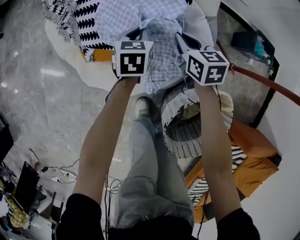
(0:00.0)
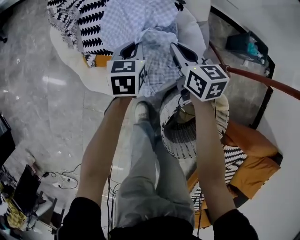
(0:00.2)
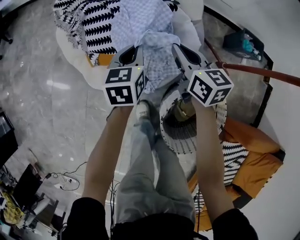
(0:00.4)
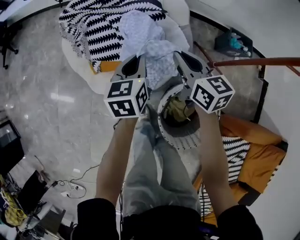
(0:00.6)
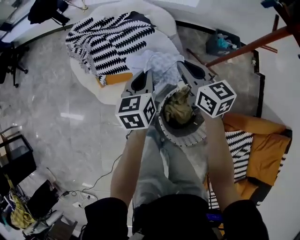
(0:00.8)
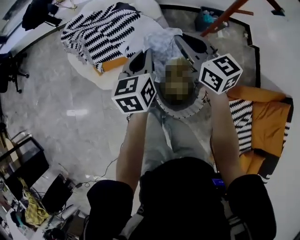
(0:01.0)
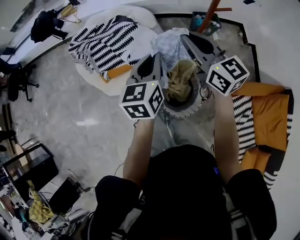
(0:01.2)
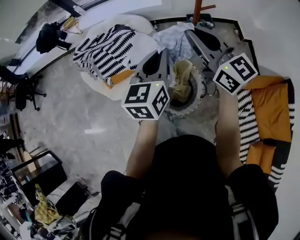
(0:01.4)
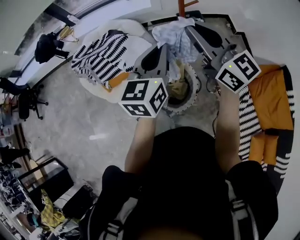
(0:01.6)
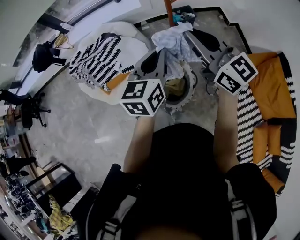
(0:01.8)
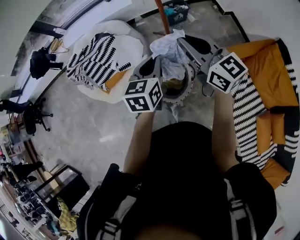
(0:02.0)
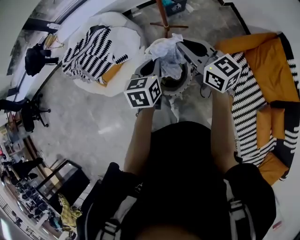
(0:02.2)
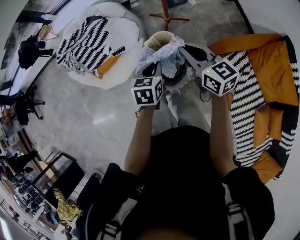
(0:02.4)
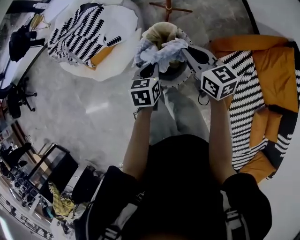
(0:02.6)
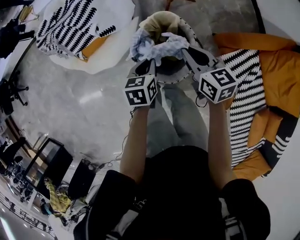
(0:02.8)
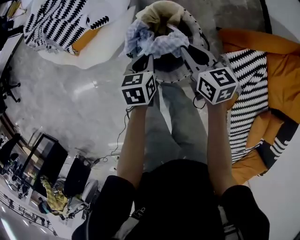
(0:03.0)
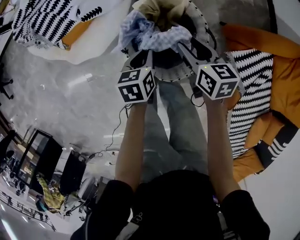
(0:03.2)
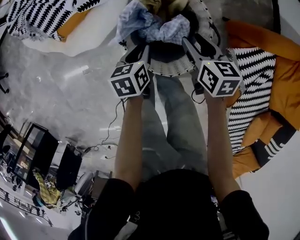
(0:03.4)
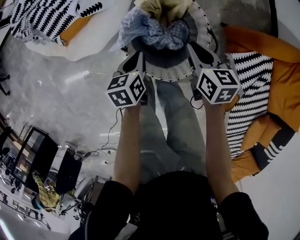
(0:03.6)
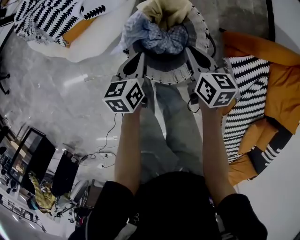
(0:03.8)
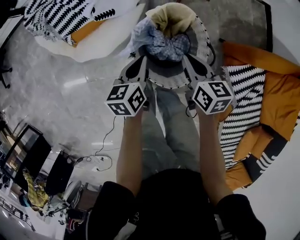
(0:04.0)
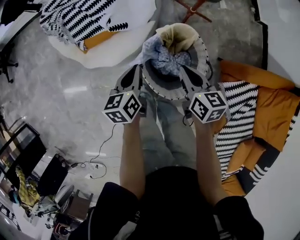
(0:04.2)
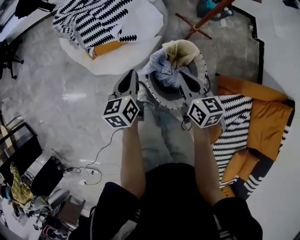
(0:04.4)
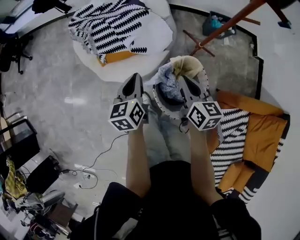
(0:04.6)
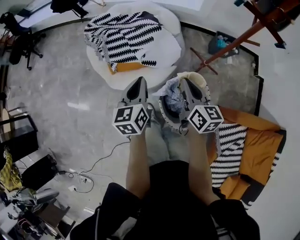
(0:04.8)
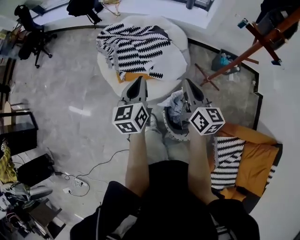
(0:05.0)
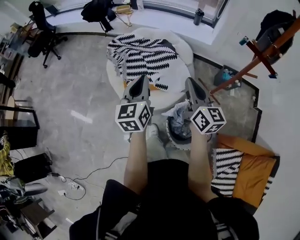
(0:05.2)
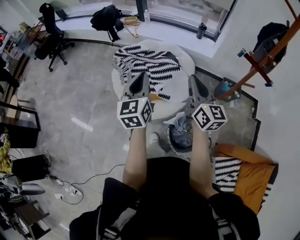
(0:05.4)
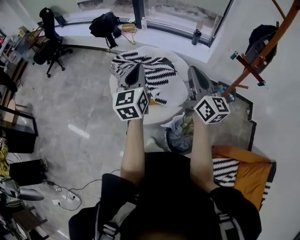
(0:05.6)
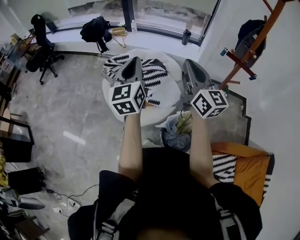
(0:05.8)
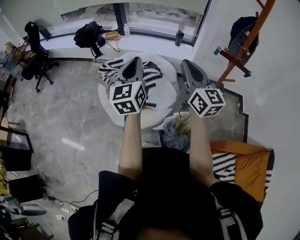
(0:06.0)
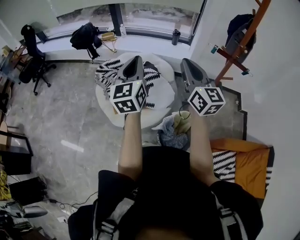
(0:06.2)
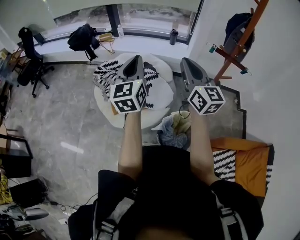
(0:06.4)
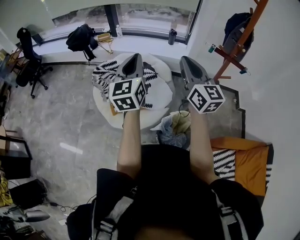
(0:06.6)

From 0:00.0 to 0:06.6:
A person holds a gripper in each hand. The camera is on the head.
From 0:00.0 to 0:01.6: The two grippers travel together, backward and to the right, roughly 50 cm. The grippers both shift upward by some 70 cm. The left gripper tilts its fingers some 40 degrees upward. The right gripper tips its fingers upward by roughly 50 degrees.
From 0:01.6 to 0:03.2: The grippers both shift downward by roughly 60 cm. The left gripper angles its fingers downward, by approximately 40 degrees, while the right gripper points its fingers approximately 50 degrees further downward, and opens.
From 0:03.2 to 0:05.0: Both grippers move upward, approximately 40 cm. The right gripper angles its fingers upward, by roughly 30 degrees, and closes up, while the left gripper tilts its fingers approximately 40 degrees upward.
From 0:05.0 to 0:06.6: The grippers both shift upward by about 25 cm. The right gripper swivels some 30 degrees, while the left gripper rotates roughly 20 degrees.

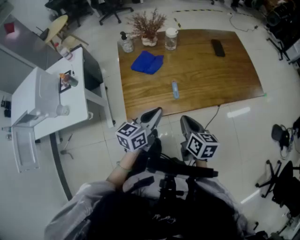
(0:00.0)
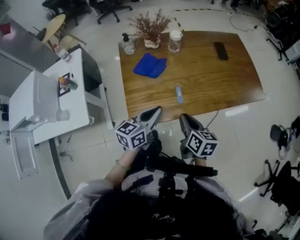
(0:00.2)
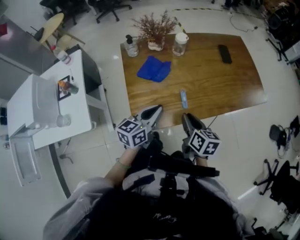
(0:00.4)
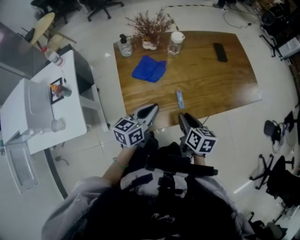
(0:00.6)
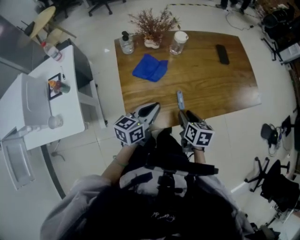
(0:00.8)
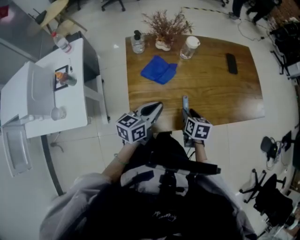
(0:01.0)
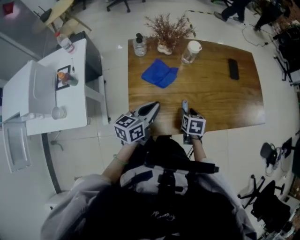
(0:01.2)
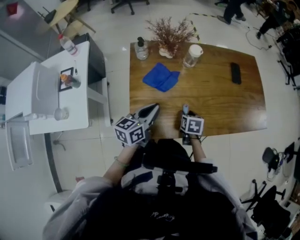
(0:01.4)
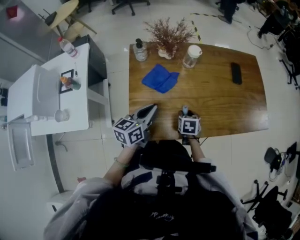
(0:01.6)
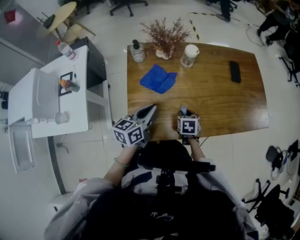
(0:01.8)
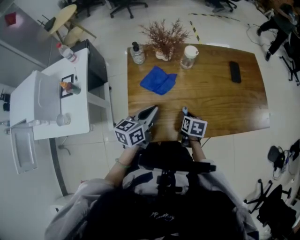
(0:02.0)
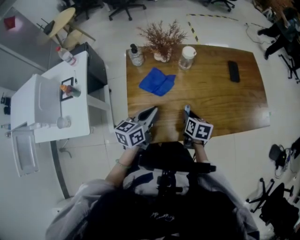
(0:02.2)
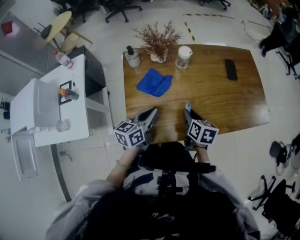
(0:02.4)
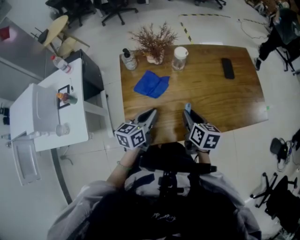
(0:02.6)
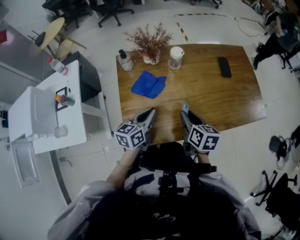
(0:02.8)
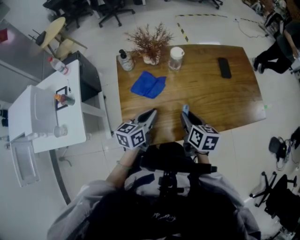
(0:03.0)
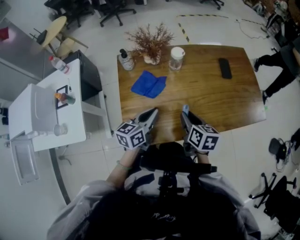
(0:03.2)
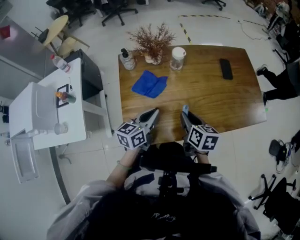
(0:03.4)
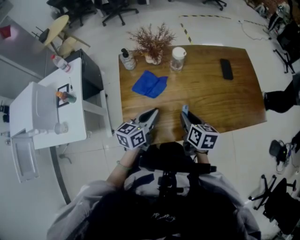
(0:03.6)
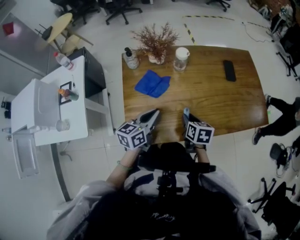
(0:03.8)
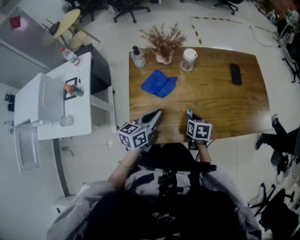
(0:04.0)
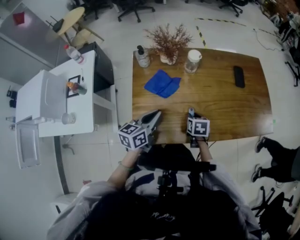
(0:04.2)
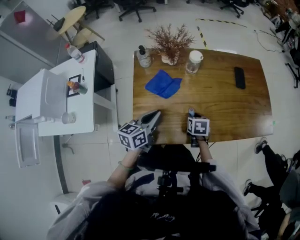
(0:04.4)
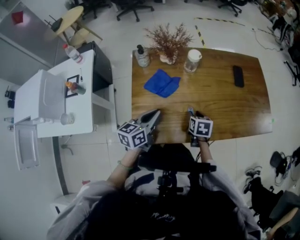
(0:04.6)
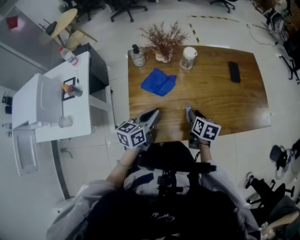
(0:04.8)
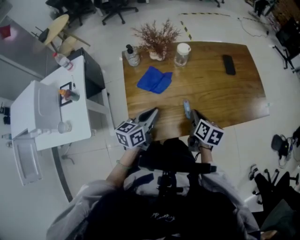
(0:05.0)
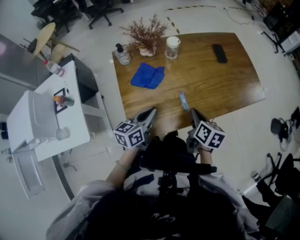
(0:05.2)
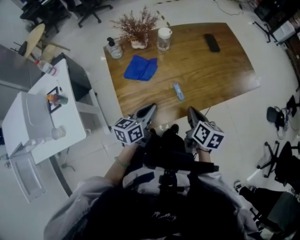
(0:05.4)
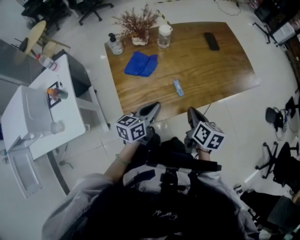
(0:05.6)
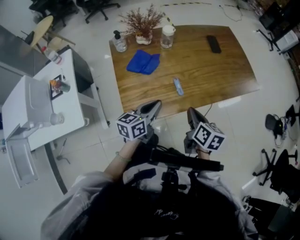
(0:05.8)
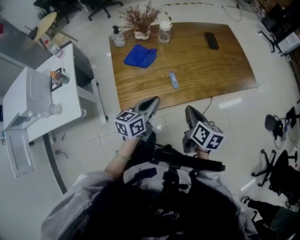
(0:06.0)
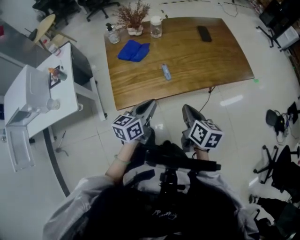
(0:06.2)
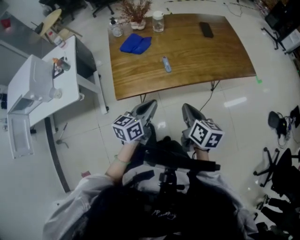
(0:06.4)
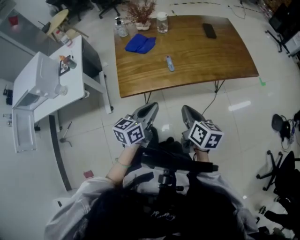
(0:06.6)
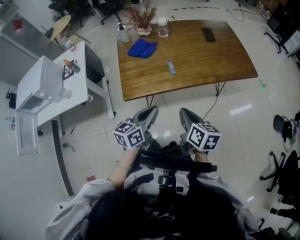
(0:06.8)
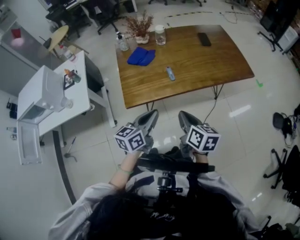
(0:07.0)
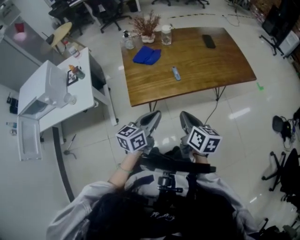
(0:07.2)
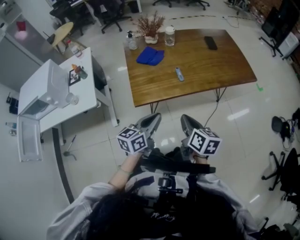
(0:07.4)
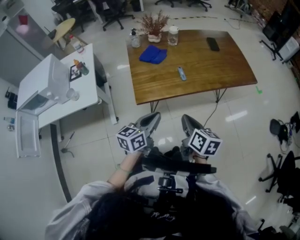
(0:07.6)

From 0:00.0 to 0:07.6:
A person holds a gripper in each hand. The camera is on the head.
From 0:00.0 to 0:01.6: The left gripper goes about 15 cm forward and to the left. The right gripper travels forward and downward by some 25 cm, tips its fingers downward by about 30 degrees, and opens its fingers.
From 0:01.6 to 0:03.0: The right gripper shifts roughly 15 cm upward, and rotates roughly 30 degrees.
From 0:03.0 to 0:04.6: The right gripper is displaced downward by some 10 cm, and changes its angle by roughly 20 degrees.
From 0:04.6 to 0:06.0: The left gripper heads backward and to the right, covering roughly 15 cm. Meanwhile the right gripper goes about 25 cm backward and upward, turns by some 30 degrees, and closes up.
From 0:06.0 to 0:07.6: The two grippers go roughly 15 cm backward.

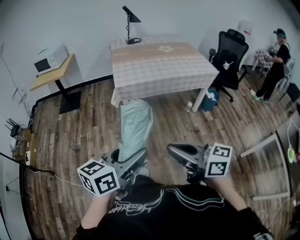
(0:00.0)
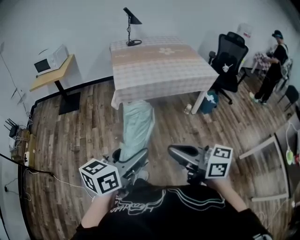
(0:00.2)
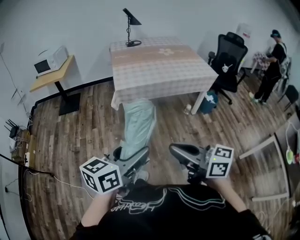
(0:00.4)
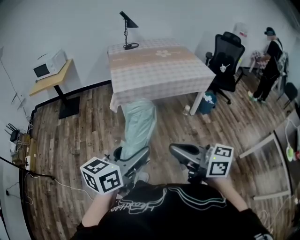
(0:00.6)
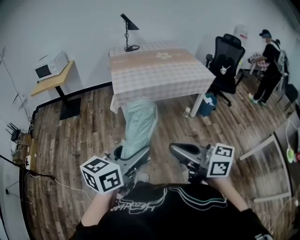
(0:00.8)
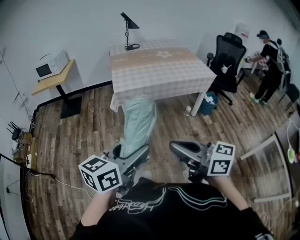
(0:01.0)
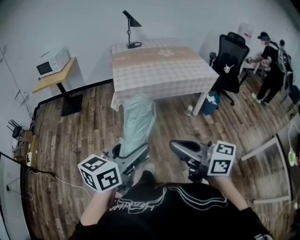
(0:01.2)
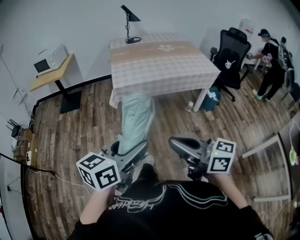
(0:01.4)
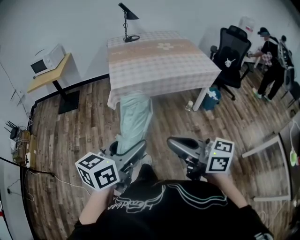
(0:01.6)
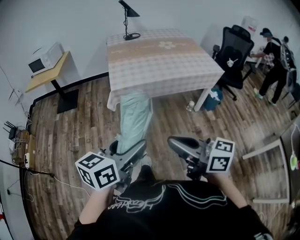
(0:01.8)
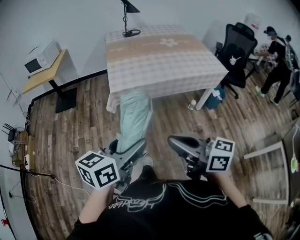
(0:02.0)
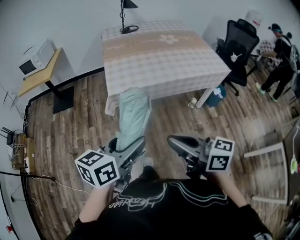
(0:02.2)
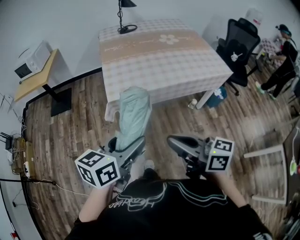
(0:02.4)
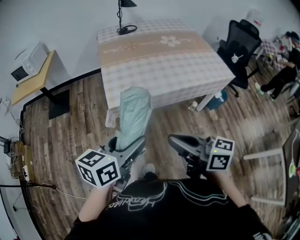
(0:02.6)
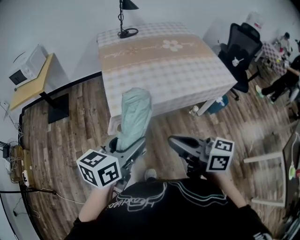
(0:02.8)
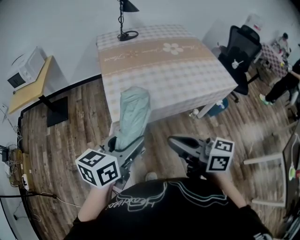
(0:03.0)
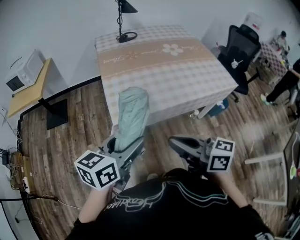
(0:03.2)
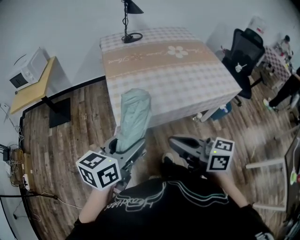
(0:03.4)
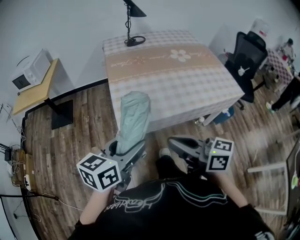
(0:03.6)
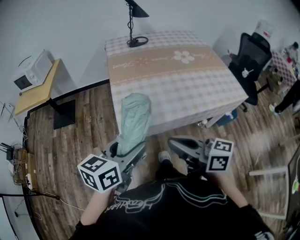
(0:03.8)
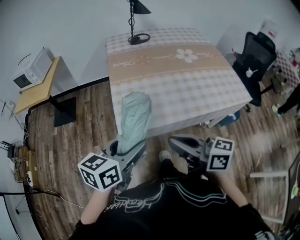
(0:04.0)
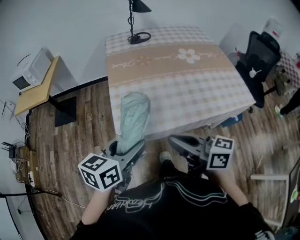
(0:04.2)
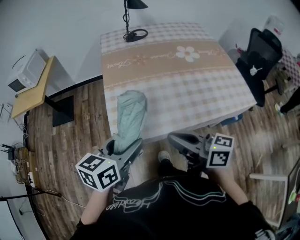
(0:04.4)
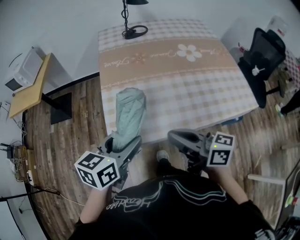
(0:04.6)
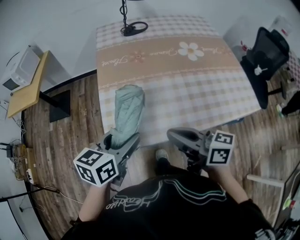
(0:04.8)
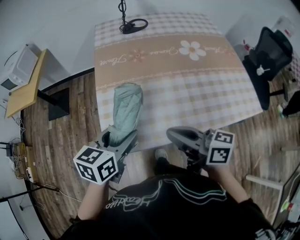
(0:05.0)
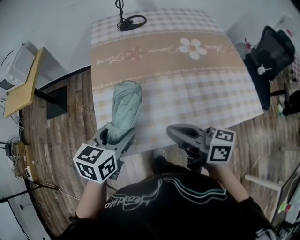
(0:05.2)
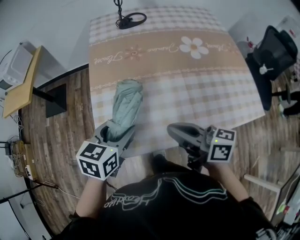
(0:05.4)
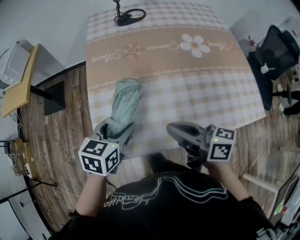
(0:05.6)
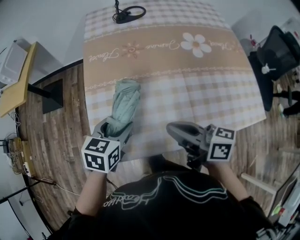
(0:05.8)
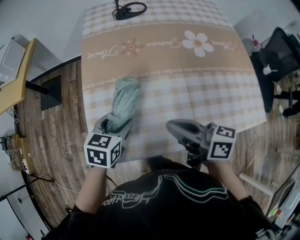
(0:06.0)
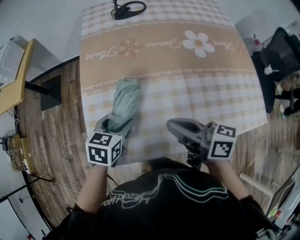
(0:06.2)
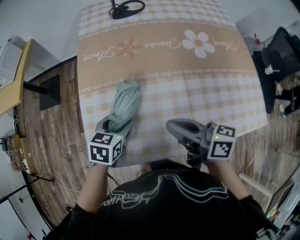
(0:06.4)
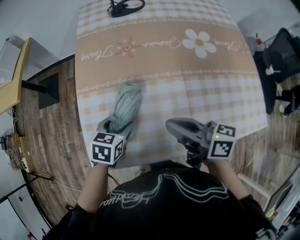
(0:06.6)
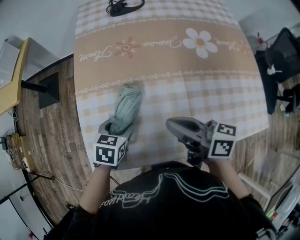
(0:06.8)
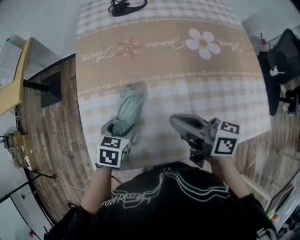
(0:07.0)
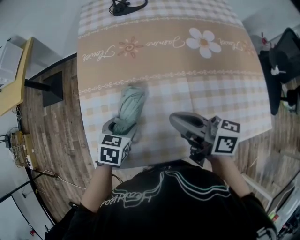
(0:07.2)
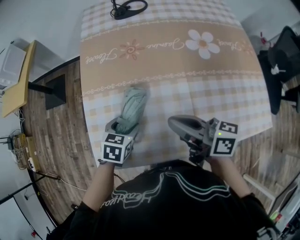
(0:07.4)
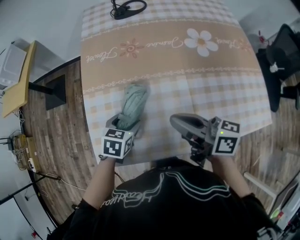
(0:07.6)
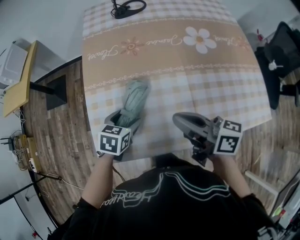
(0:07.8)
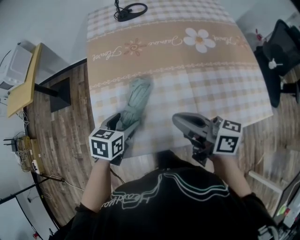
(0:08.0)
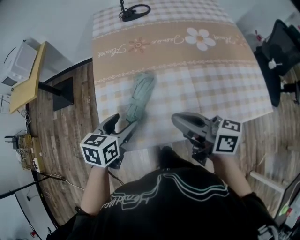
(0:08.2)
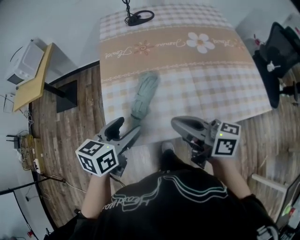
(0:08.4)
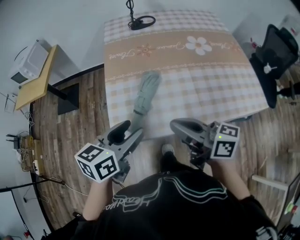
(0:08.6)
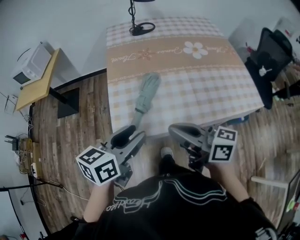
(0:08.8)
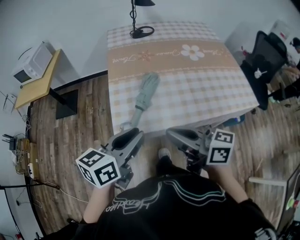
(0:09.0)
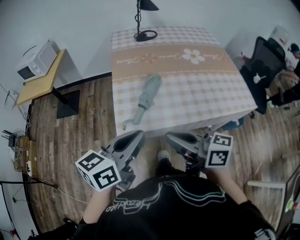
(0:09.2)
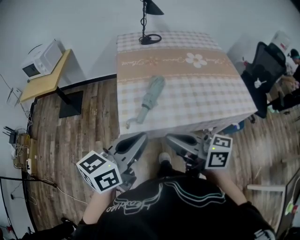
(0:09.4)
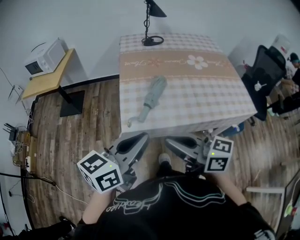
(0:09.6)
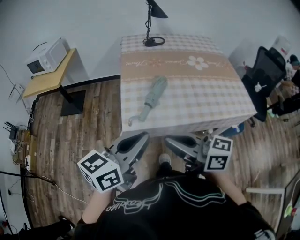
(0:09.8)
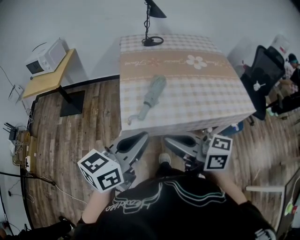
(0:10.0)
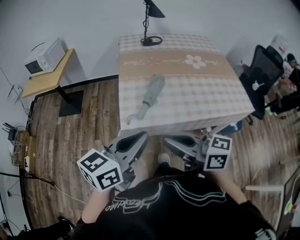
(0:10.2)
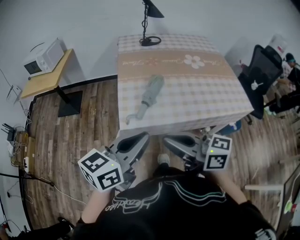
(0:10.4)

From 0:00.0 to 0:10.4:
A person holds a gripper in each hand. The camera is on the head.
From 0:00.0 to 0:01.4: The grippers make only small movements.
From 0:01.4 to 0:03.0: Both grippers travel together forward, about 40 cm.
From 0:03.0 to 0:04.4: Both grippers move forward, some 15 cm.
From 0:04.4 to 0:06.0: The left gripper moves forward and downward, some 25 cm, and swivels approximately 20 degrees. Meanwhile the right gripper travels forward, to the right and downward by some 20 cm.
From 0:06.0 to 0:07.4: The left gripper travels downward by some 10 cm. Meanwhile the right gripper shifts by roughly 5 cm.
From 0:07.4 to 0:09.0: The left gripper heads upward and backward, covering some 35 cm, tilts its fingers some 40 degrees upward, and closes up; the right gripper moves backward, to the left and upward, about 30 cm.
From 0:09.0 to 0:10.4: The right gripper moves backward and to the left, some 10 cm. The left gripper goes approximately 10 cm backward and upward.
